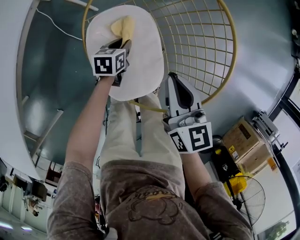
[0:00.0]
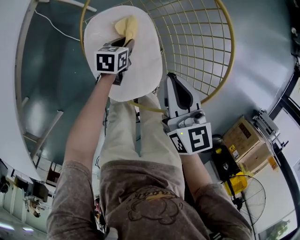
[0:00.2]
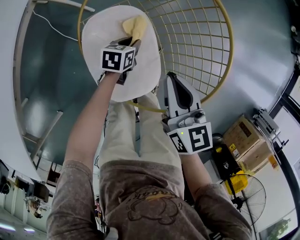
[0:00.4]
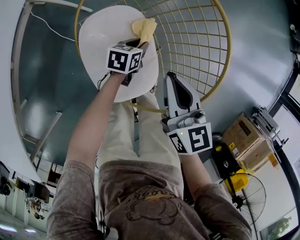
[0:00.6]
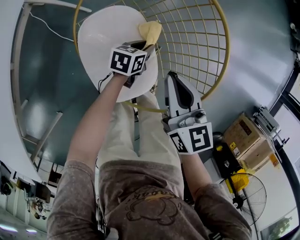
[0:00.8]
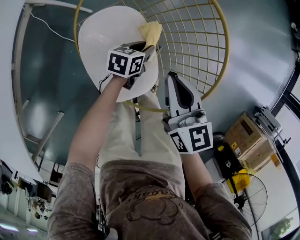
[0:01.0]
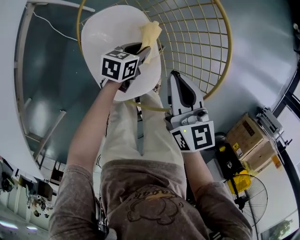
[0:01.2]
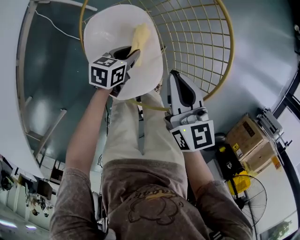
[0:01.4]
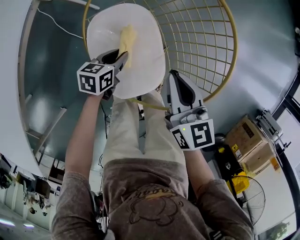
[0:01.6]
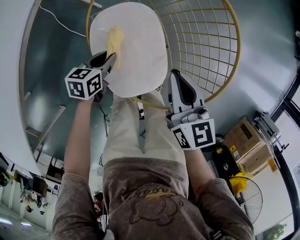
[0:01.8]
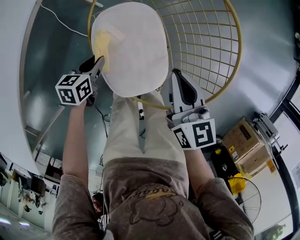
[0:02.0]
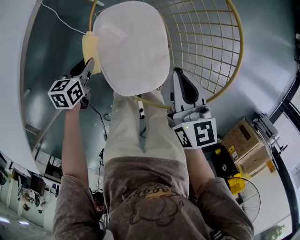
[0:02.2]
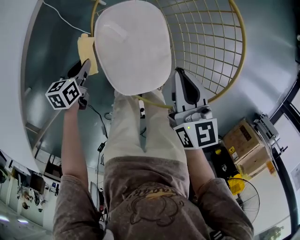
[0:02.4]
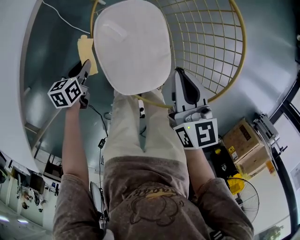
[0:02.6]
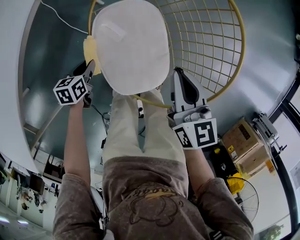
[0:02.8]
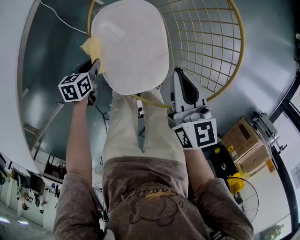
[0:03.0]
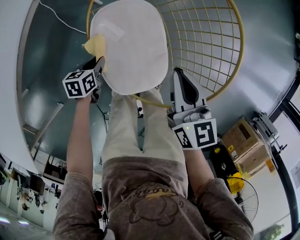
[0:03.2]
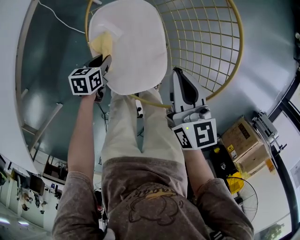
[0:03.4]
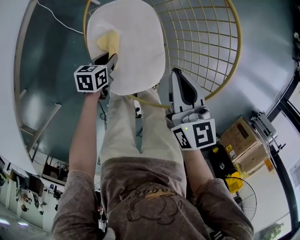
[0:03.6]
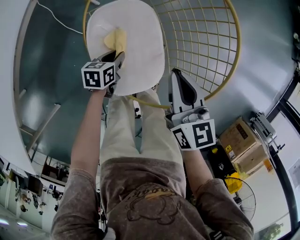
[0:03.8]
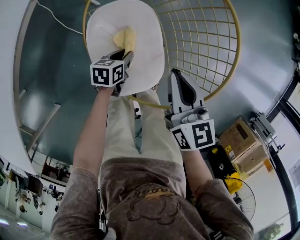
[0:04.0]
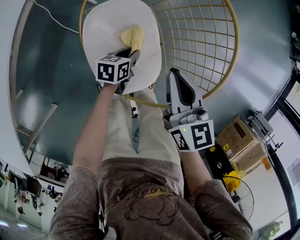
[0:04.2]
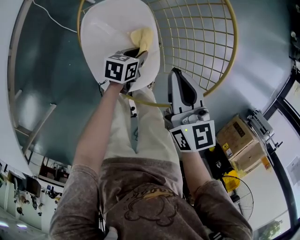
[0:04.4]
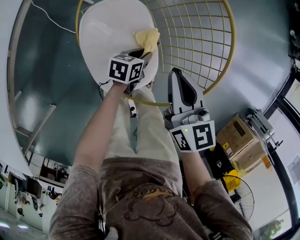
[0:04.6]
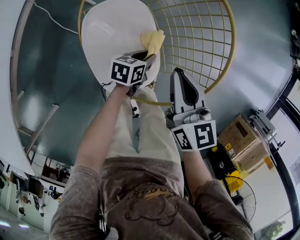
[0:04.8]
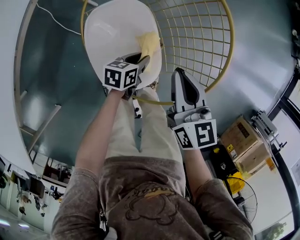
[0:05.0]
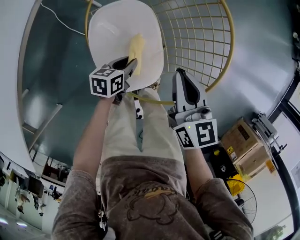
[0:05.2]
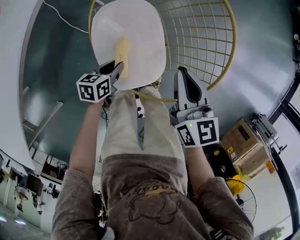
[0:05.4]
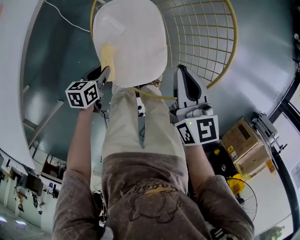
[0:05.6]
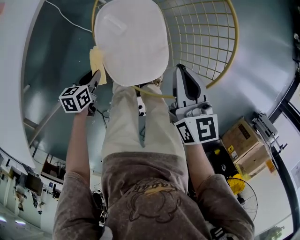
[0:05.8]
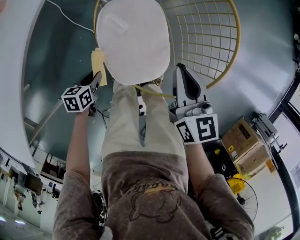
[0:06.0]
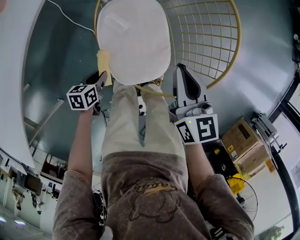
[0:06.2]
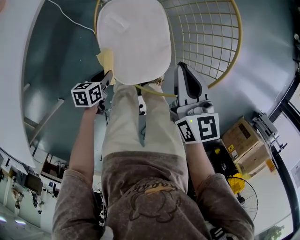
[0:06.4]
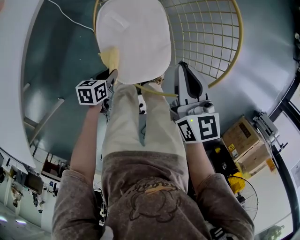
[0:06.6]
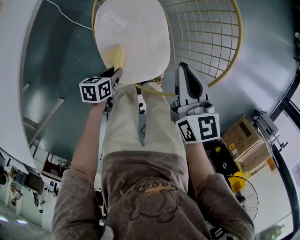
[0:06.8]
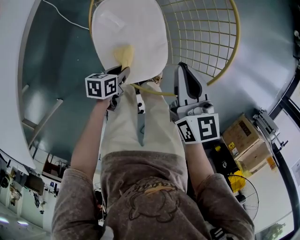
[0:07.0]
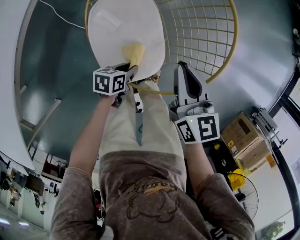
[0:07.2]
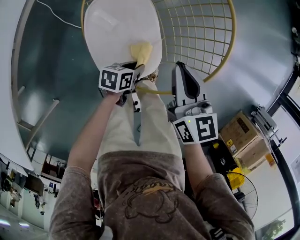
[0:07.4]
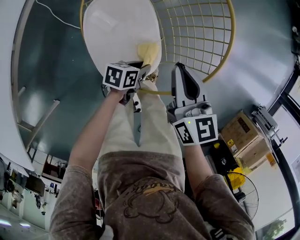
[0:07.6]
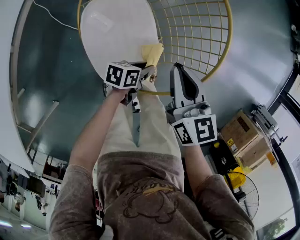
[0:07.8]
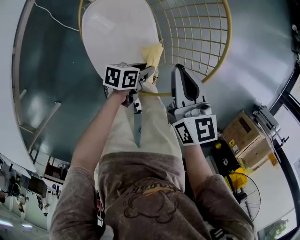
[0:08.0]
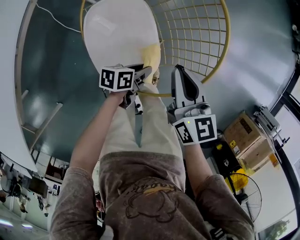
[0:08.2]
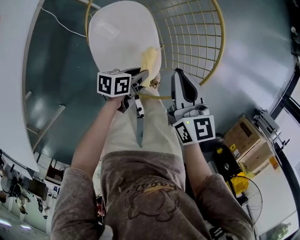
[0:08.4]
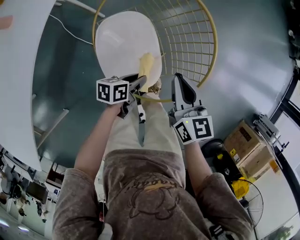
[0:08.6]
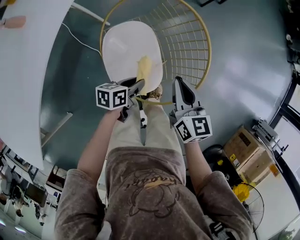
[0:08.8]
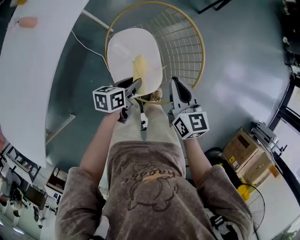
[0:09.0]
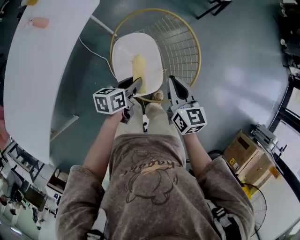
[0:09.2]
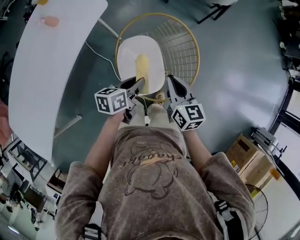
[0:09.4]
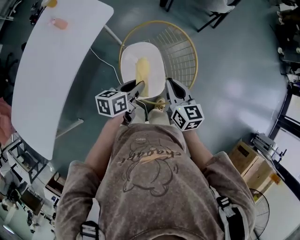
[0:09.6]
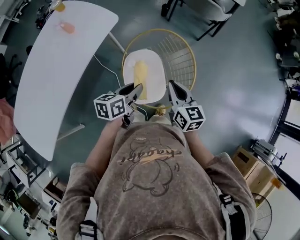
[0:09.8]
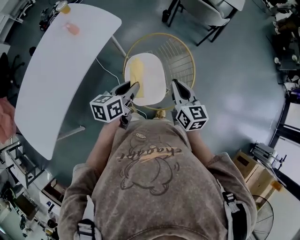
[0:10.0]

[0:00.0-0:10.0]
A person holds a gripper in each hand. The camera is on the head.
0:00.0 to 0:01.4: The left gripper moves to the right, some 5 cm.
0:01.4 to 0:02.8: The left gripper heads to the left and backward, covering approximately 25 cm, and turns by approximately 30 degrees.
0:02.8 to 0:04.2: The left gripper is displaced to the right by some 20 cm.
0:04.2 to 0:05.8: The left gripper goes some 20 cm backward and to the left.
0:05.8 to 0:07.2: The left gripper goes some 20 cm to the right, and turns by approximately 20 degrees.
0:07.2 to 0:08.6: The left gripper heads upward, covering approximately 10 cm.
0:08.6 to 0:10.0: The right gripper shifts about 20 cm upward. The left gripper moves upward, about 35 cm, and turns by roughly 30 degrees.

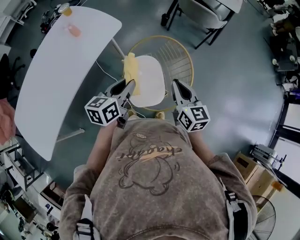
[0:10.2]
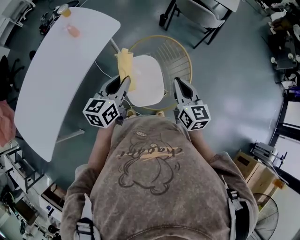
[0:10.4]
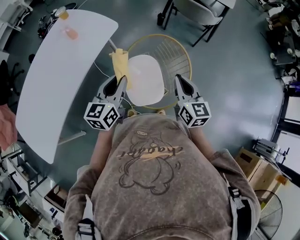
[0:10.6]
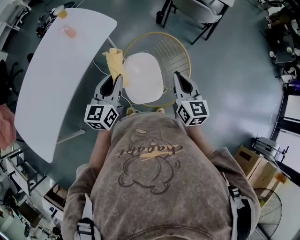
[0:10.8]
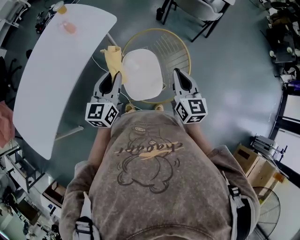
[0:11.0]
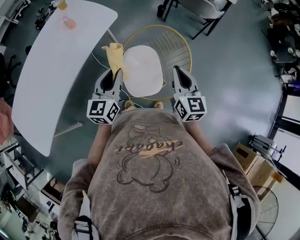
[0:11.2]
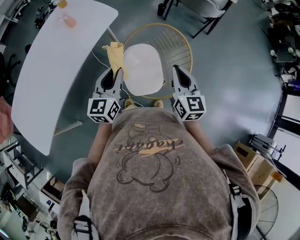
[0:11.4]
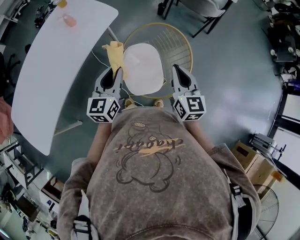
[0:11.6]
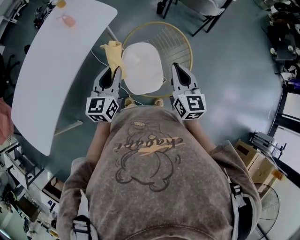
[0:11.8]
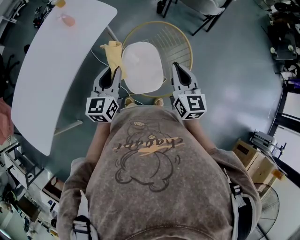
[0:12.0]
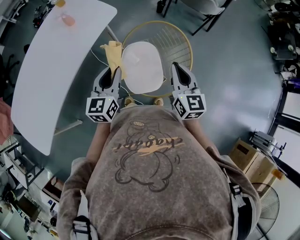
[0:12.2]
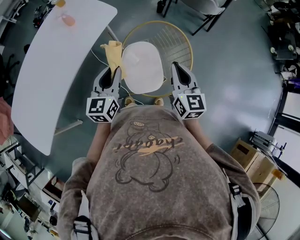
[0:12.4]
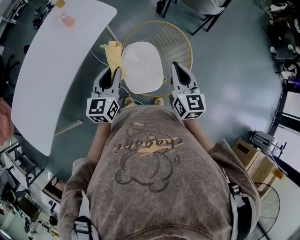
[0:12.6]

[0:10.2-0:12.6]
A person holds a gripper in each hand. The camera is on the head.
0:10.2 to 0:11.4: The left gripper rotates approximately 30 degrees.
0:11.4 to 0:12.6: Both grippers stay about where they are.

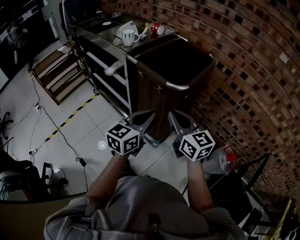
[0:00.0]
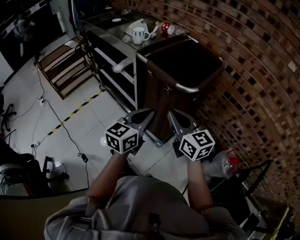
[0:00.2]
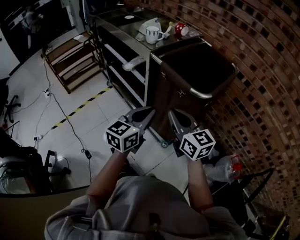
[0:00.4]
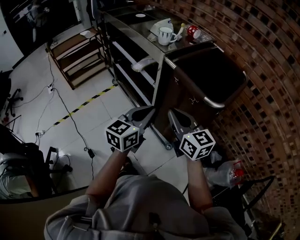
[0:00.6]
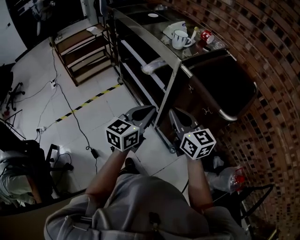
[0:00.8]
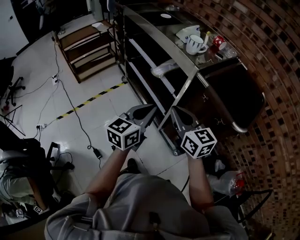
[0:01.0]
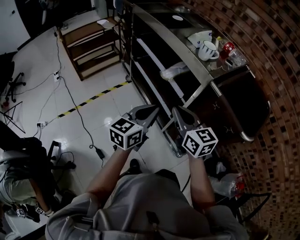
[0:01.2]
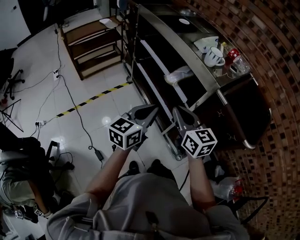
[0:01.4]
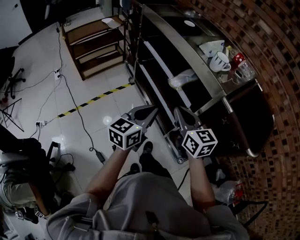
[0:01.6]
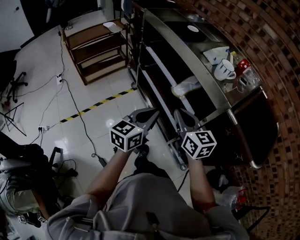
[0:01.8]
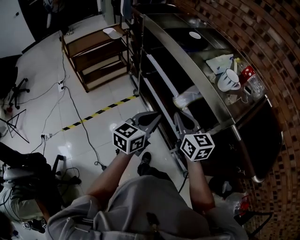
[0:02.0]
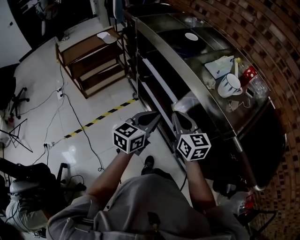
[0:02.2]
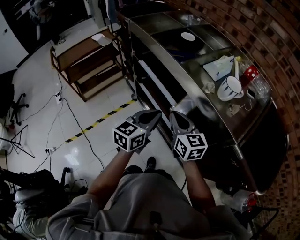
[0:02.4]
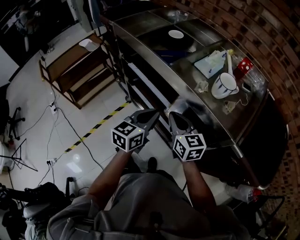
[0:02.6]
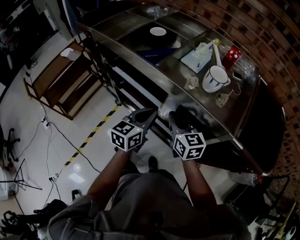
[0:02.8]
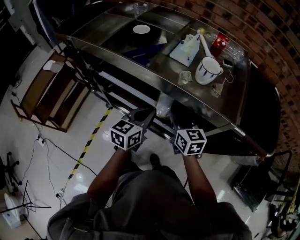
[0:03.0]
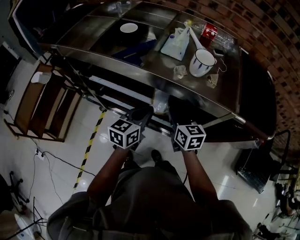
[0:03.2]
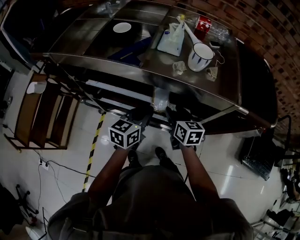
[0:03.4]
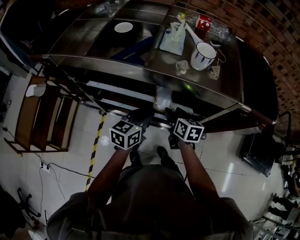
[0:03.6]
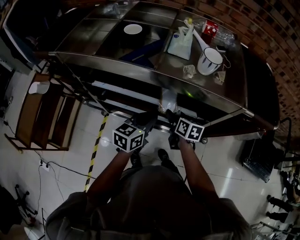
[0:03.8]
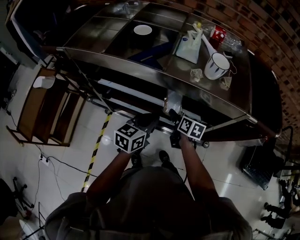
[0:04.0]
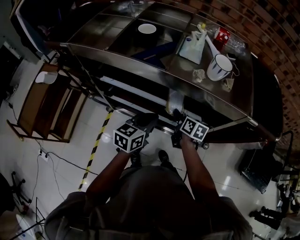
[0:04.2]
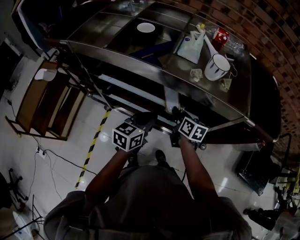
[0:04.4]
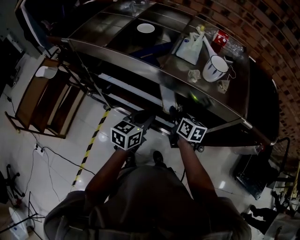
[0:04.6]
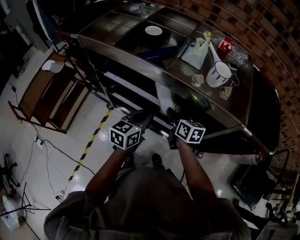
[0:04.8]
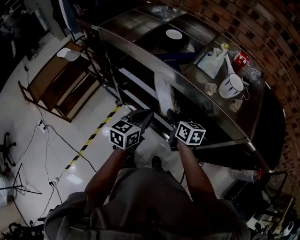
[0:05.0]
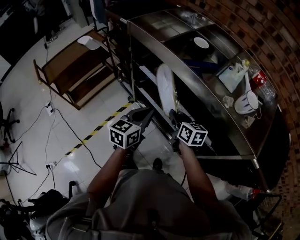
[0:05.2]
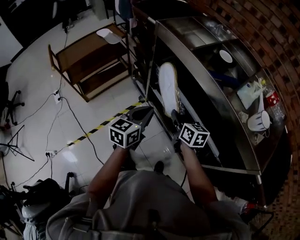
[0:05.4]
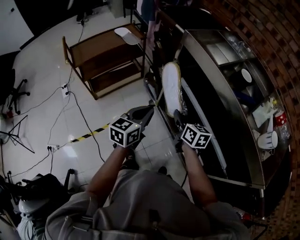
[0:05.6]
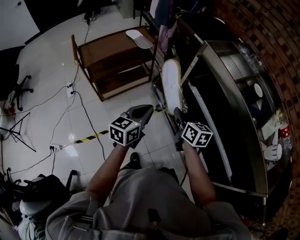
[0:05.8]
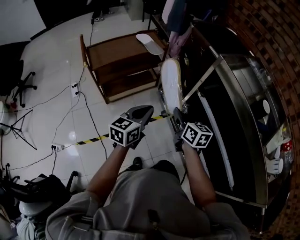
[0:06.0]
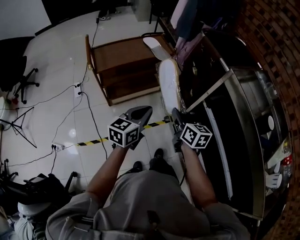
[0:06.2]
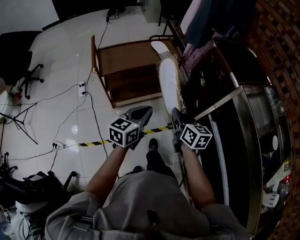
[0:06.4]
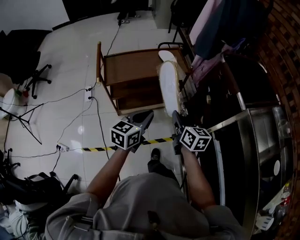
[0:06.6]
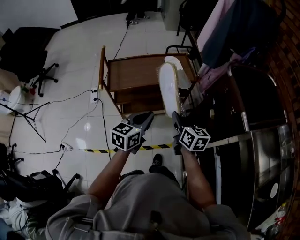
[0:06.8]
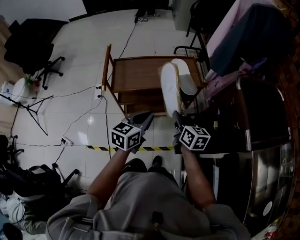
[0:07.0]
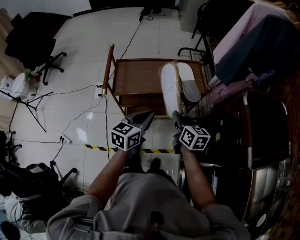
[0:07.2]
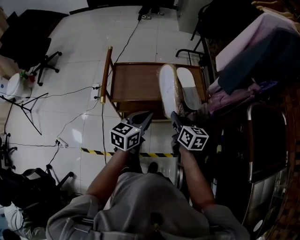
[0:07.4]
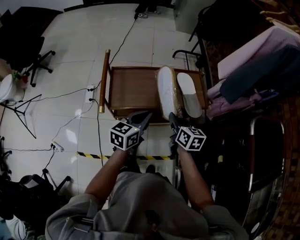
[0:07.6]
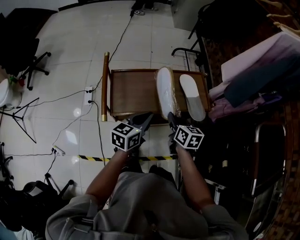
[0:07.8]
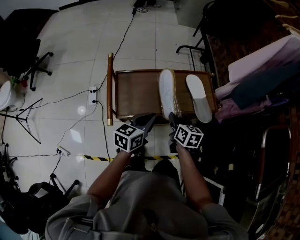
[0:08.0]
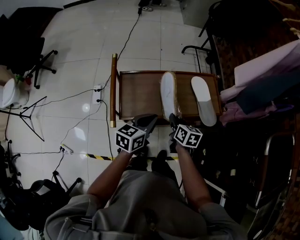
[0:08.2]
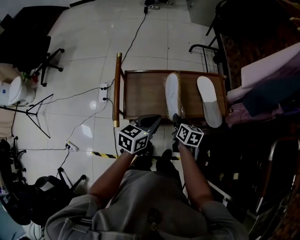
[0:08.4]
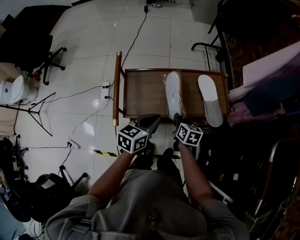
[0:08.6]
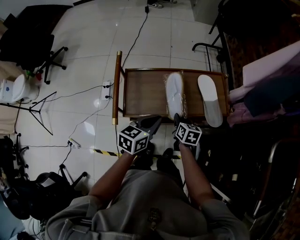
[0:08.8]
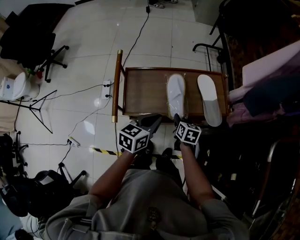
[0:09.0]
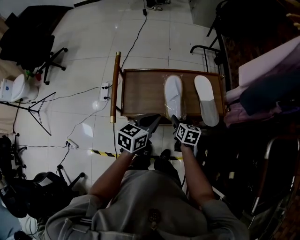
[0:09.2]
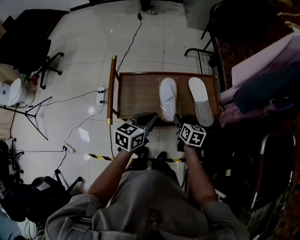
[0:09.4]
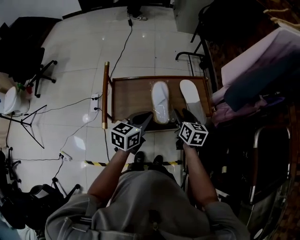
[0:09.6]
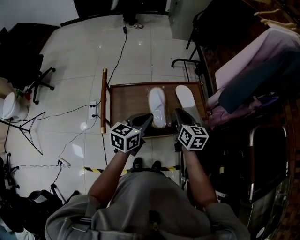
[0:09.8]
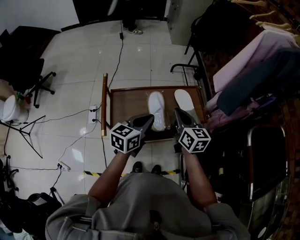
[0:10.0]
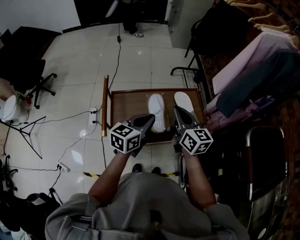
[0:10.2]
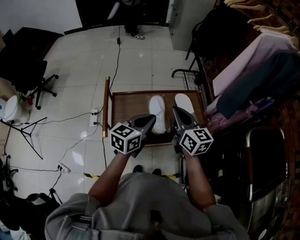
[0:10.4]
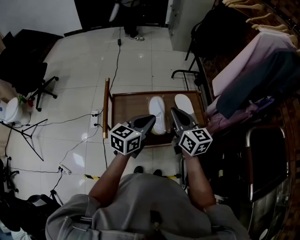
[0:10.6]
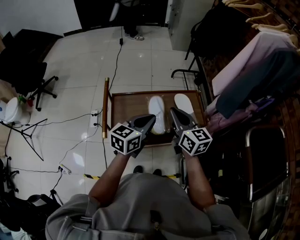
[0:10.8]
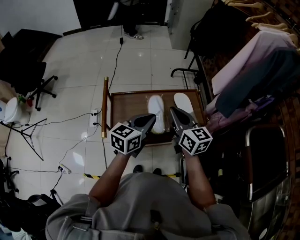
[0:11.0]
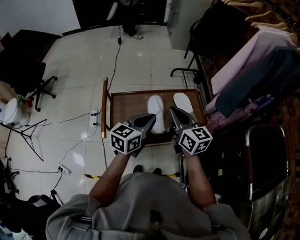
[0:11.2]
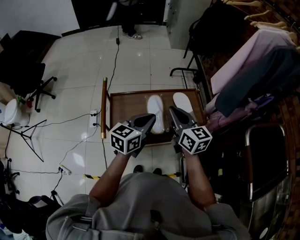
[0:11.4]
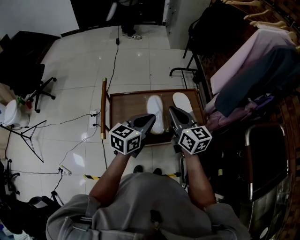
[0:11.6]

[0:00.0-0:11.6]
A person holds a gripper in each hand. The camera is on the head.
0:00.0 to 0:01.4: Both grippers travel together to the left and forward, approximately 35 cm.
0:01.4 to 0:02.8: Both grippers move forward, approximately 25 cm. The left gripper changes its angle by about 20 degrees; the right gripper turns by some 20 degrees.
0:02.8 to 0:04.4: The right gripper is displaced downward by some 10 cm, rotates about 40 degrees, and opens, then closes once more. The left gripper heads downward, covering some 5 cm, and turns by about 20 degrees.
0:04.4 to 0:05.8: The right gripper changes place by approximately 40 cm, and swivels roughly 50 degrees. Meanwhile the left gripper shifts by about 40 cm, and turns by about 50 degrees.
0:05.8 to 0:07.2: The left gripper changes place by approximately 40 cm, and swivels some 30 degrees. The right gripper ends up roughly 40 cm from where it was, and rotates some 30 degrees.
0:07.2 to 0:08.8: The right gripper heads forward, downward and to the left, covering approximately 25 cm. Meanwhile the left gripper is displaced forward, to the left and downward by approximately 20 cm.
0:08.8 to 0:10.2: The left gripper heads upward, covering approximately 10 cm, while the right gripper heads upward, covering roughly 30 cm, points its fingers about 30 degrees further upward, and opens, then closes once more.
0:10.2 to 0:11.6: There are only small adjustments of the grippers.
